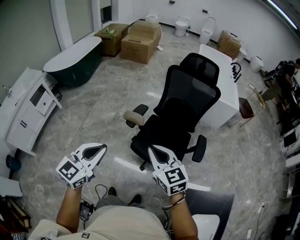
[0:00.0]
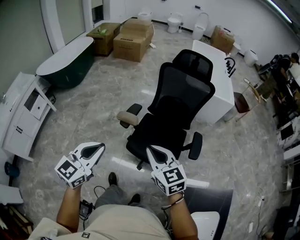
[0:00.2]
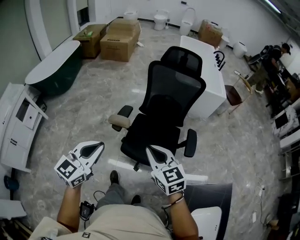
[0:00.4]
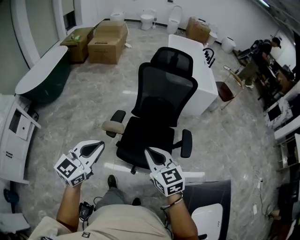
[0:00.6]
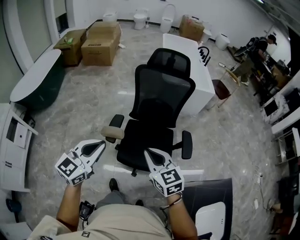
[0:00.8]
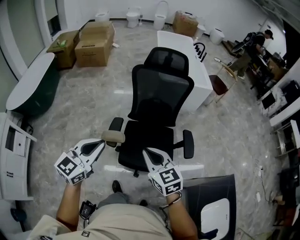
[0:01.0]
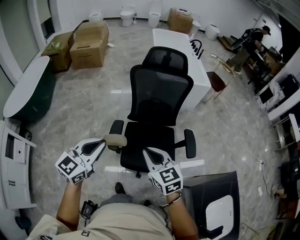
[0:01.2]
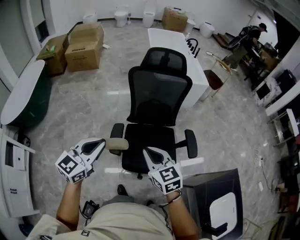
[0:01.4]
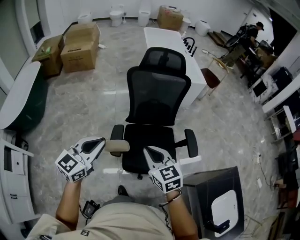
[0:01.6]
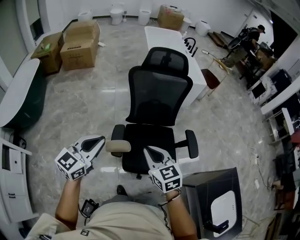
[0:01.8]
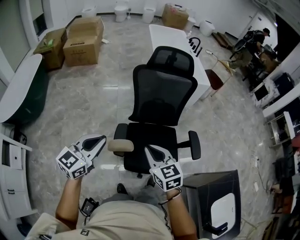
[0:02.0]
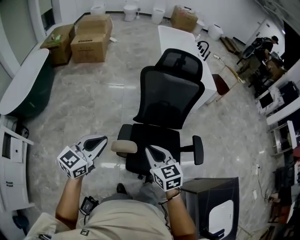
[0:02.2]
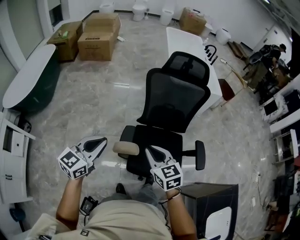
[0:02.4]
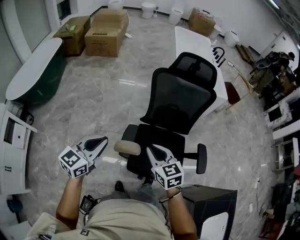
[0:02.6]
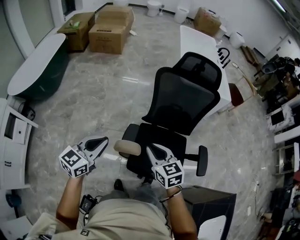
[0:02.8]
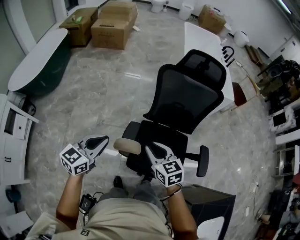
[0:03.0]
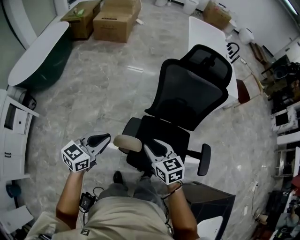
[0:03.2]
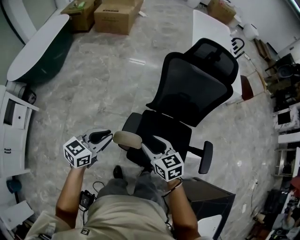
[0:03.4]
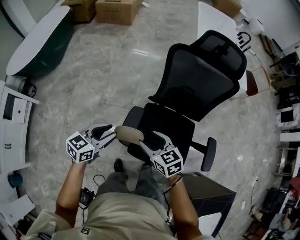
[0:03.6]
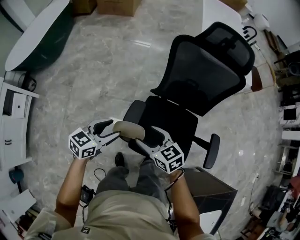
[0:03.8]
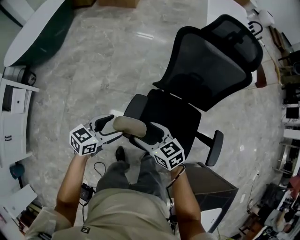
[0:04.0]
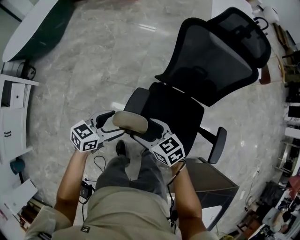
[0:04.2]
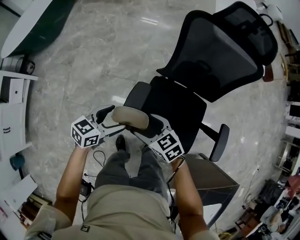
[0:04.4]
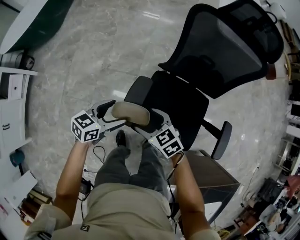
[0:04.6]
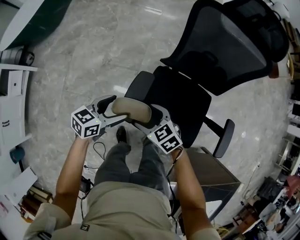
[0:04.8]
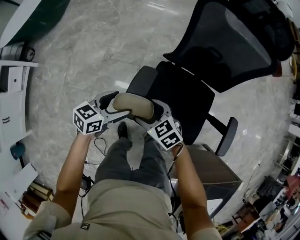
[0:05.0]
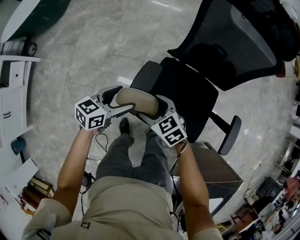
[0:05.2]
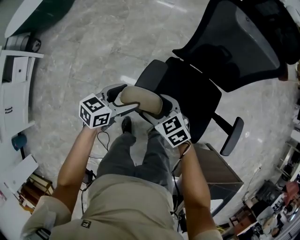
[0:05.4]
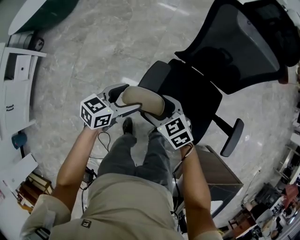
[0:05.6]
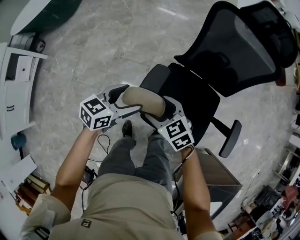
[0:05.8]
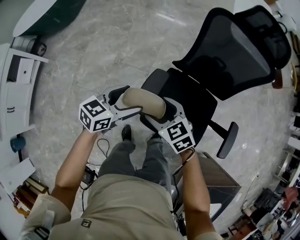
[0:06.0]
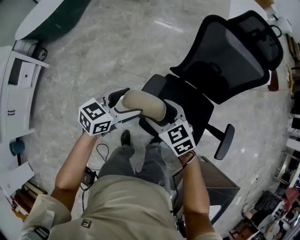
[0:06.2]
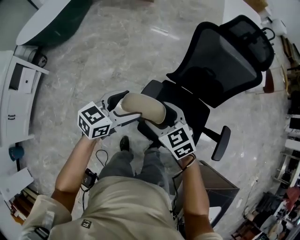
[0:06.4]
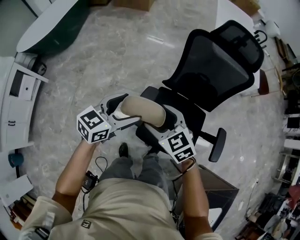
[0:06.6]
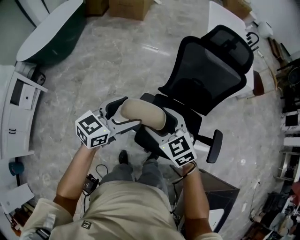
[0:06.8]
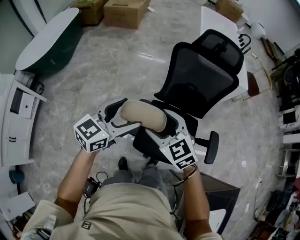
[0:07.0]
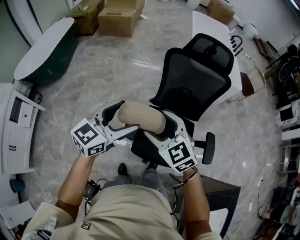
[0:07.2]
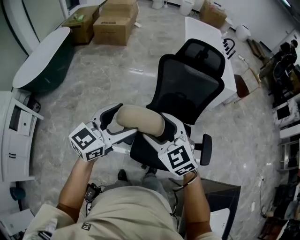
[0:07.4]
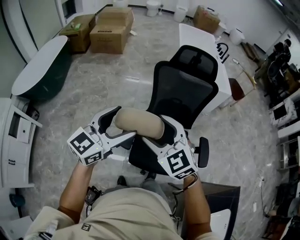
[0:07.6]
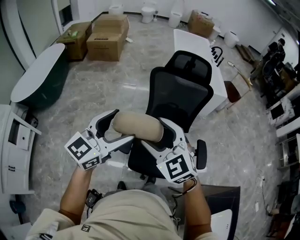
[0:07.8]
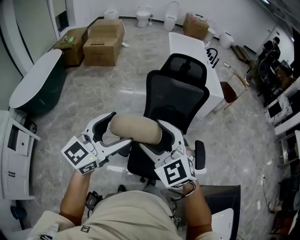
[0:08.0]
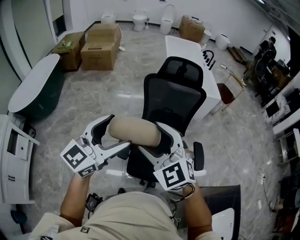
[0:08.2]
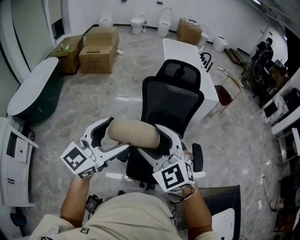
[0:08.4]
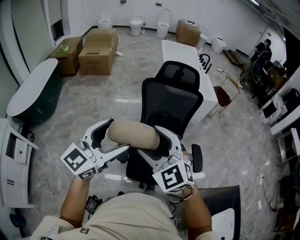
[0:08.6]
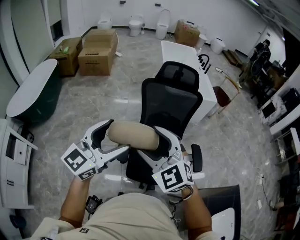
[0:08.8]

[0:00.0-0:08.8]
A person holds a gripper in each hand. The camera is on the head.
0:00.0 to 0:01.4: The right gripper shifts by approximately 20 cm, and turns by some 20 degrees; the left gripper shifts by about 25 cm, and turns by some 30 degrees.
0:01.4 to 0:03.0: The right gripper shifts roughly 15 cm forward, downward and to the left; the left gripper is displaced downward, to the left and forward by some 15 cm.
0:03.0 to 0:04.4: Both grippers move downward, approximately 20 cm. The left gripper turns by roughly 20 degrees, and opens, while the right gripper rotates some 30 degrees, and opens its fingers.
0:05.8 to 0:07.4: Both grippers travel together upward, approximately 35 cm. The left gripper rotates about 30 degrees. Meanwhile the right gripper changes its angle by approximately 30 degrees.
0:07.4 to 0:08.8: The grippers both shift upward and backward by some 10 cm.

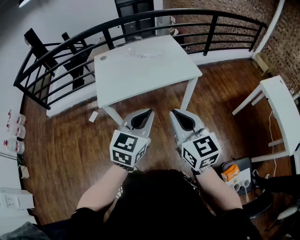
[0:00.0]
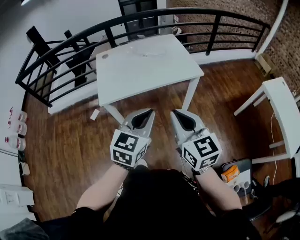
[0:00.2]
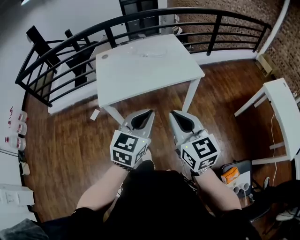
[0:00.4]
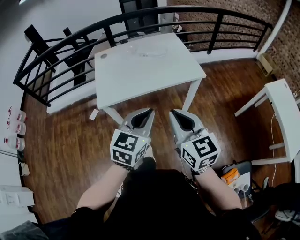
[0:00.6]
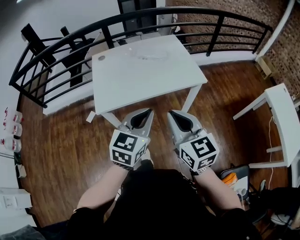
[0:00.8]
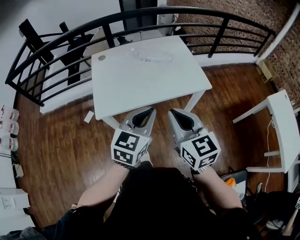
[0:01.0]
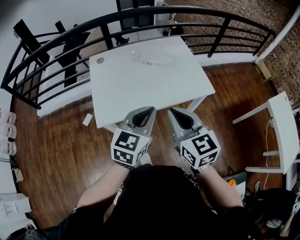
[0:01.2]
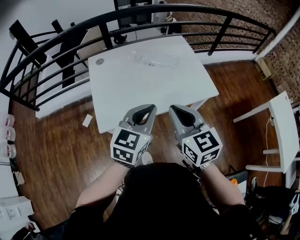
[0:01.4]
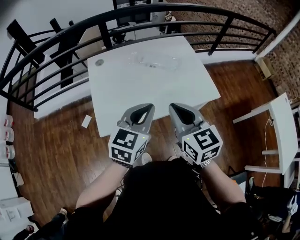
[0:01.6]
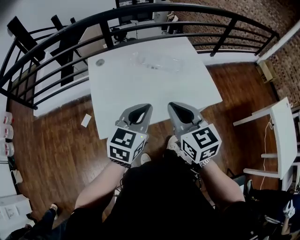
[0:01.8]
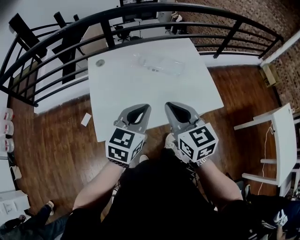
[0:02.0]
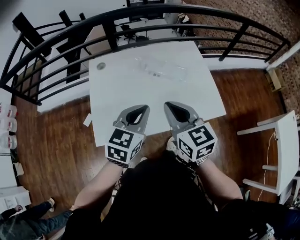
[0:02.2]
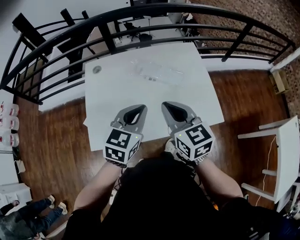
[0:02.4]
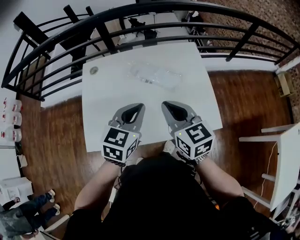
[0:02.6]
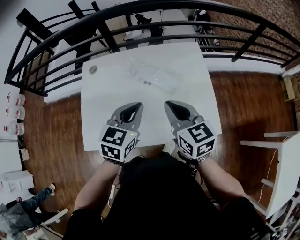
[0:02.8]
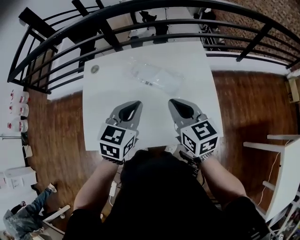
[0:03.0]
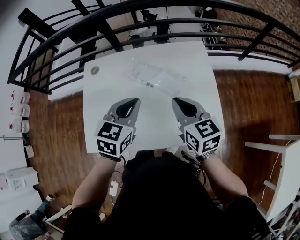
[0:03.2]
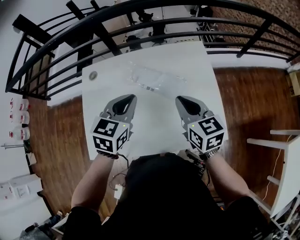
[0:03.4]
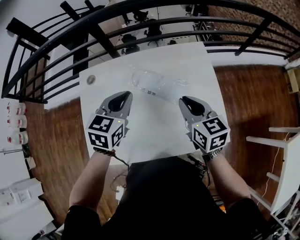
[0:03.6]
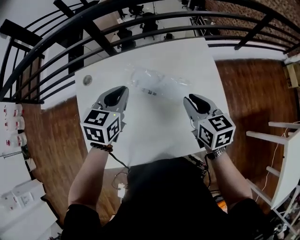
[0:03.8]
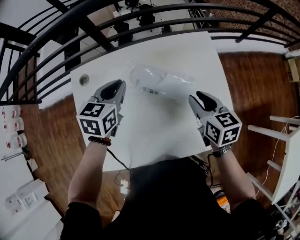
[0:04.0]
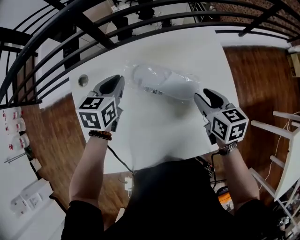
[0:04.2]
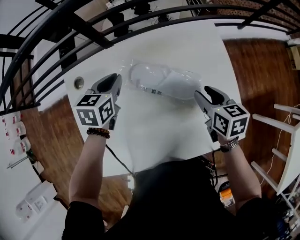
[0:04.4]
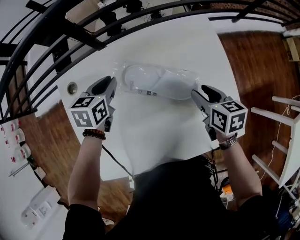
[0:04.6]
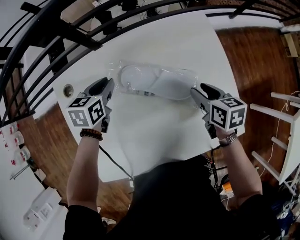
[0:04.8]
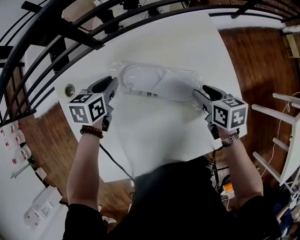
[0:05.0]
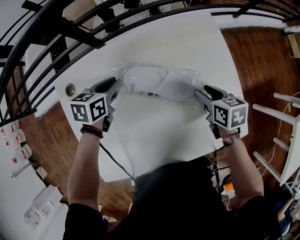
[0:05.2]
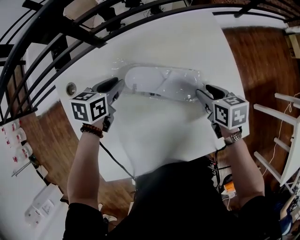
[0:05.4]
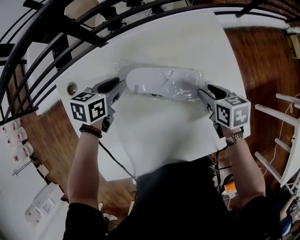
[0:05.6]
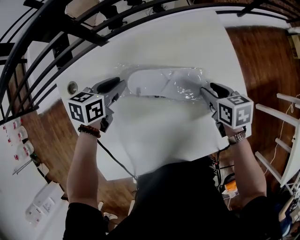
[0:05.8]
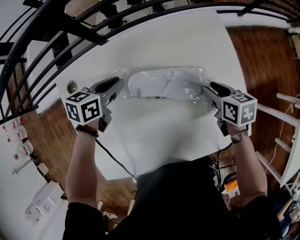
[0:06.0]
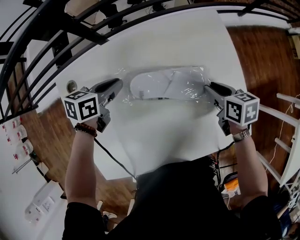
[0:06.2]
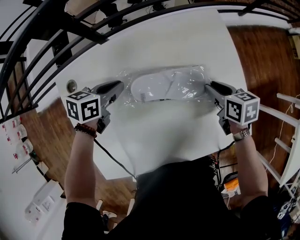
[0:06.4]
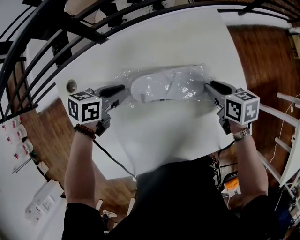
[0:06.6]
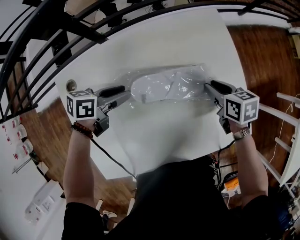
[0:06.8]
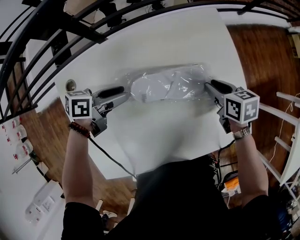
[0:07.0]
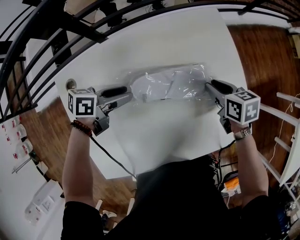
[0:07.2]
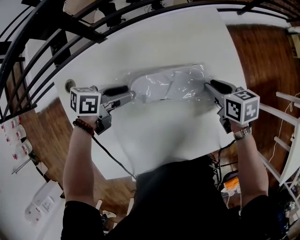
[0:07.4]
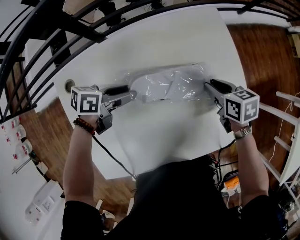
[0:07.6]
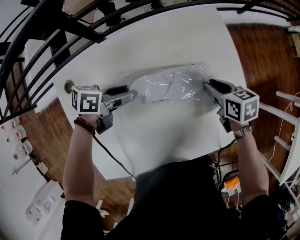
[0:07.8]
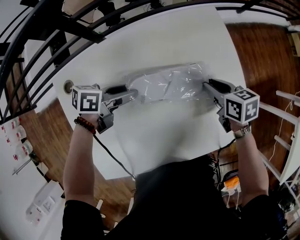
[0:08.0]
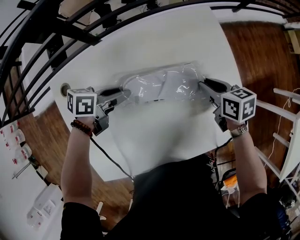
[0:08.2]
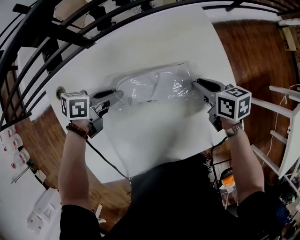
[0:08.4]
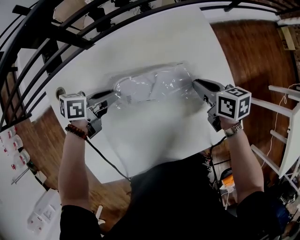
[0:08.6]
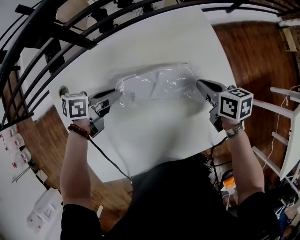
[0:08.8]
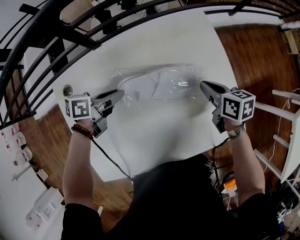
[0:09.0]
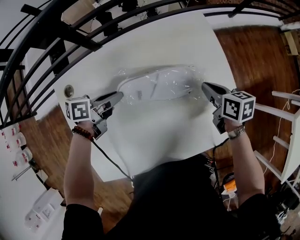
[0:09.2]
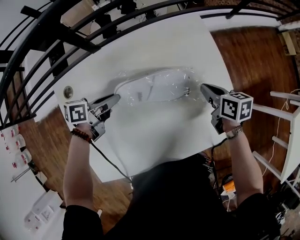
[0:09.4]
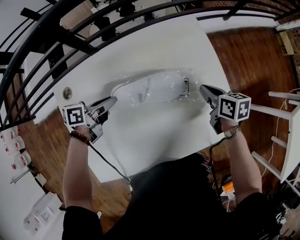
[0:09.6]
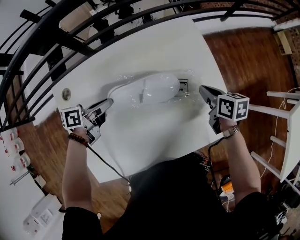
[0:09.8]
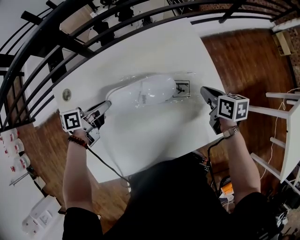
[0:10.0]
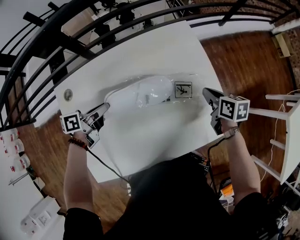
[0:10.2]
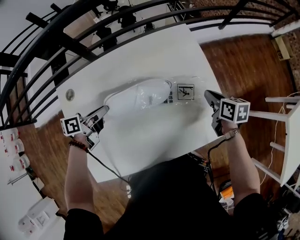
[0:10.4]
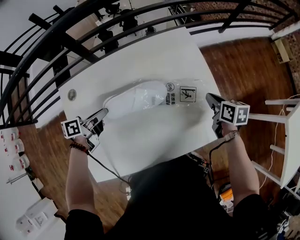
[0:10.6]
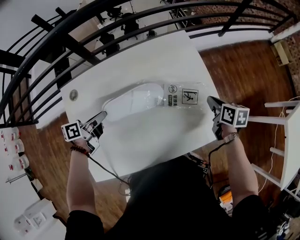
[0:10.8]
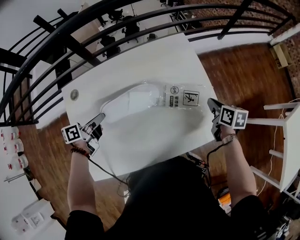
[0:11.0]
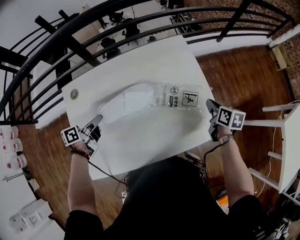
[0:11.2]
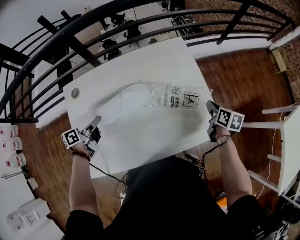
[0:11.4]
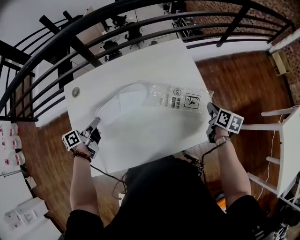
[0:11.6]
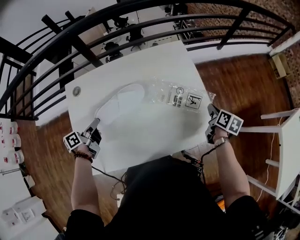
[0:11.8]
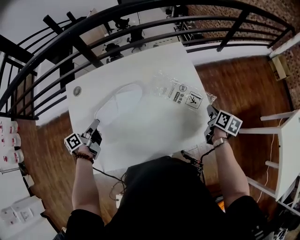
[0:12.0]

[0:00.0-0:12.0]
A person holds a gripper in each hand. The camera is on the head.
0:00.0 to 0:01.6: The left gripper goes approximately 30 cm forward. The right gripper goes about 35 cm forward and to the left.
0:01.6 to 0:03.0: The left gripper shifts roughly 20 cm forward, and changes its angle by roughly 20 degrees, while the right gripper goes approximately 30 cm forward and to the right.
0:03.0 to 0:04.4: The left gripper moves forward, downward and to the left, approximately 30 cm, while the right gripper goes approximately 20 cm forward and downward, turns by roughly 30 degrees, and opens its fingers.
0:04.4 to 0:06.0: Both grippers travel together downward, roughly 5 cm. The left gripper rotates some 20 degrees.
0:06.0 to 0:07.6: The left gripper ends up about 5 cm from where it was, rotates approximately 30 degrees, and opens.
0:07.6 to 0:09.0: The right gripper closes up. The left gripper closes its fingers.
0:09.0 to 0:10.4: The left gripper shifts approximately 5 cm backward. Meanwhile the right gripper travels to the right by roughly 10 cm.
0:10.4 to 0:12.0: The right gripper goes approximately 15 cm to the right and backward, and changes its angle by some 20 degrees; the left gripper shifts approximately 10 cm backward, and turns by some 30 degrees.

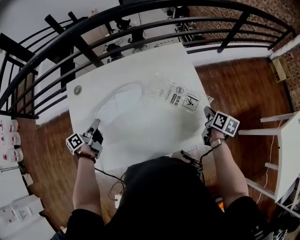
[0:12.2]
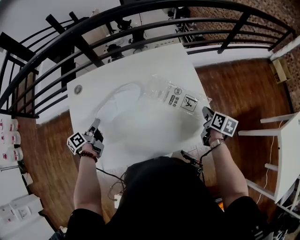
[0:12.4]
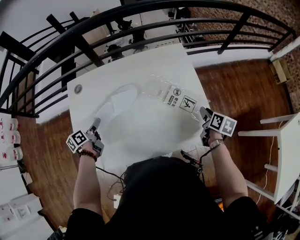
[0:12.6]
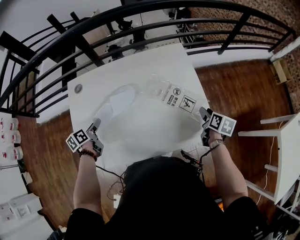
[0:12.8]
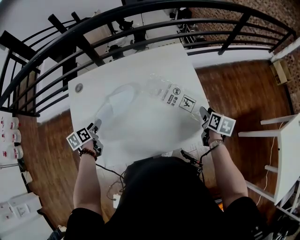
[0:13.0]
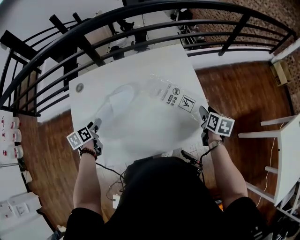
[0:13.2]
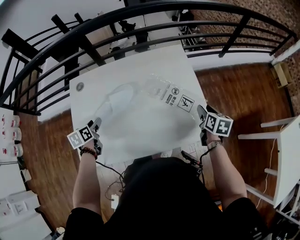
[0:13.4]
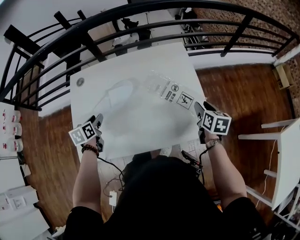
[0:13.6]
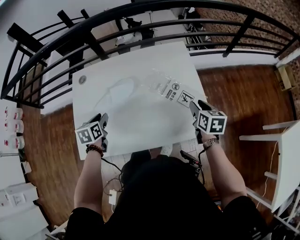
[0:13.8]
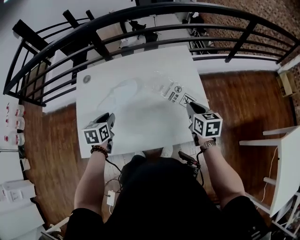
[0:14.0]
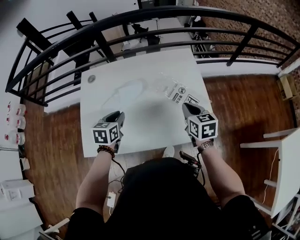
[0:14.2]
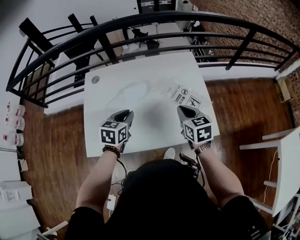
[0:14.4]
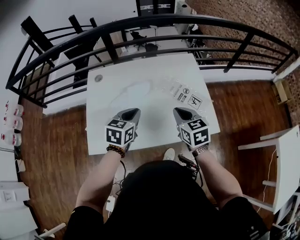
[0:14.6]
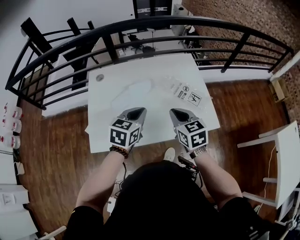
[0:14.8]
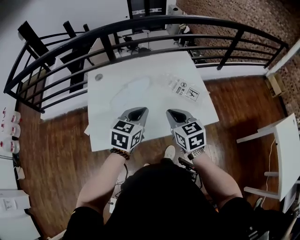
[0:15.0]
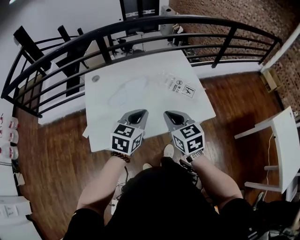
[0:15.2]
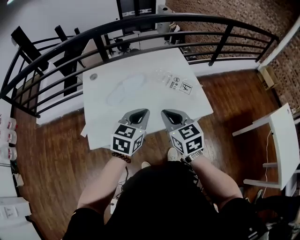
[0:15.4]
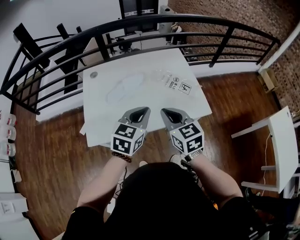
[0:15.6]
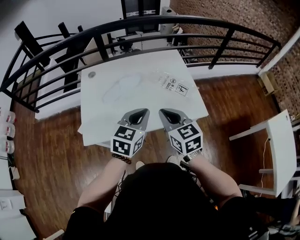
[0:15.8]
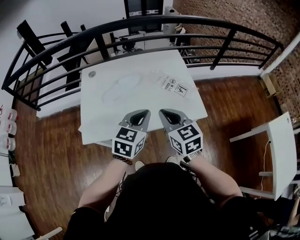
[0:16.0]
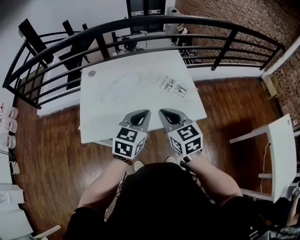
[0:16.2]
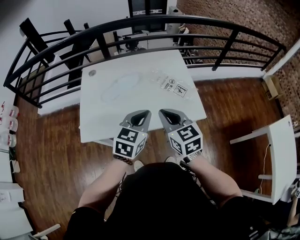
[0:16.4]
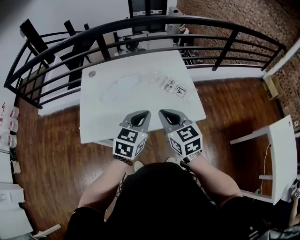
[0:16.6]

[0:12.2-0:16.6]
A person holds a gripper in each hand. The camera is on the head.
0:12.2 to 0:13.6: The left gripper swivels some 50 degrees, and opens up. The right gripper changes its angle by some 20 degrees, and opens.
0:13.6 to 0:15.2: The left gripper goes about 30 cm to the right, upward and backward, swivels about 40 degrees, and closes up; the right gripper shifts roughly 35 cm to the left, backward and upward, swivels some 30 degrees, and closes up.
0:15.2 to 0:16.6: The left gripper is displaced to the right by about 10 cm; the right gripper goes roughly 5 cm to the right.
